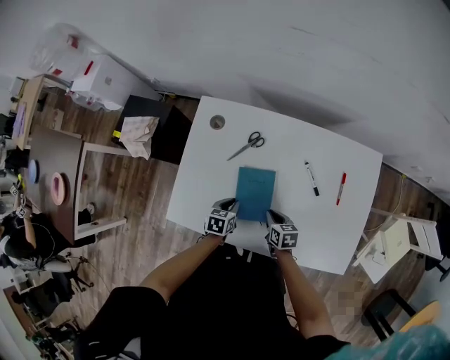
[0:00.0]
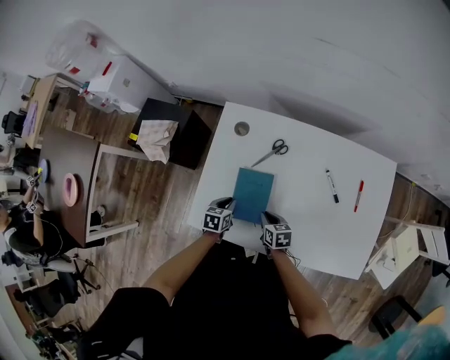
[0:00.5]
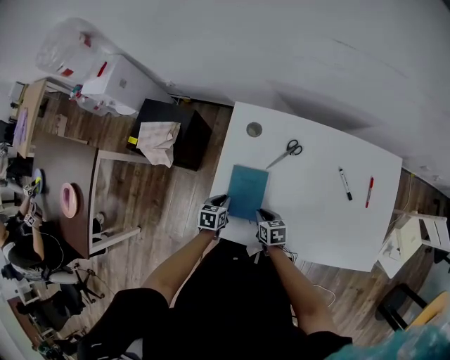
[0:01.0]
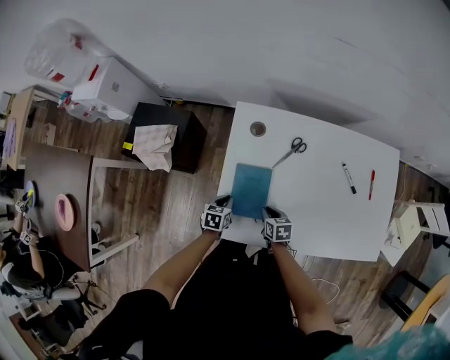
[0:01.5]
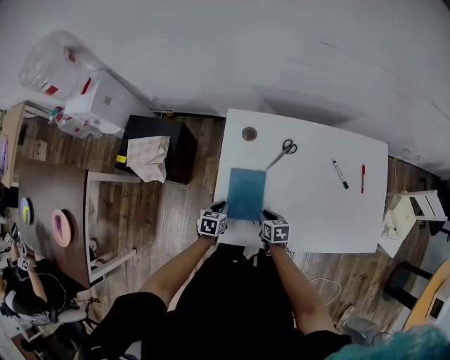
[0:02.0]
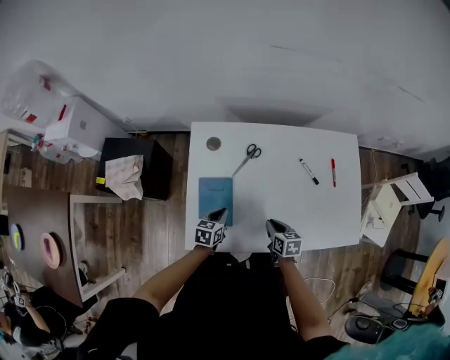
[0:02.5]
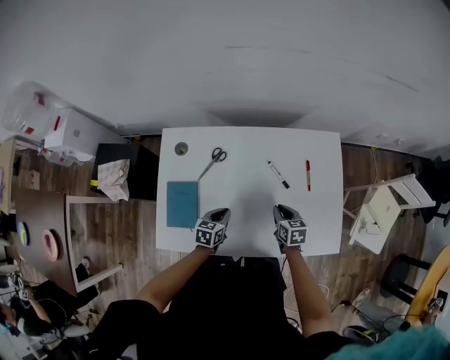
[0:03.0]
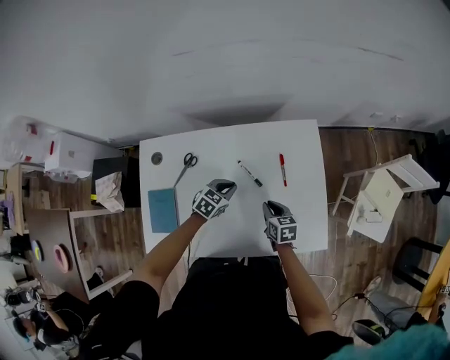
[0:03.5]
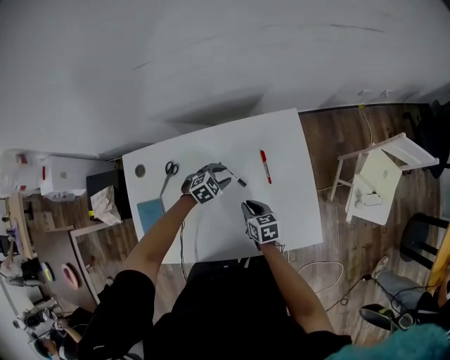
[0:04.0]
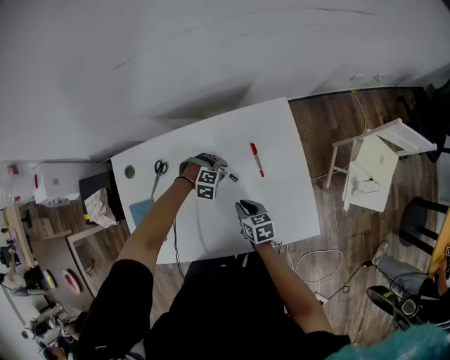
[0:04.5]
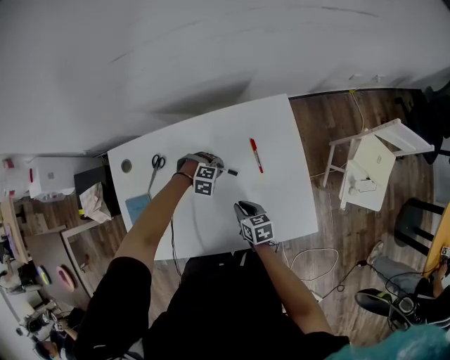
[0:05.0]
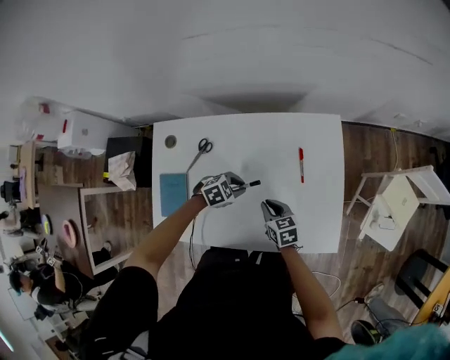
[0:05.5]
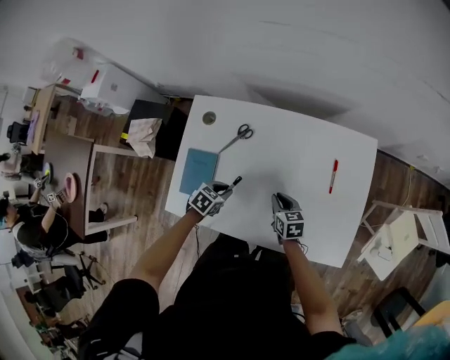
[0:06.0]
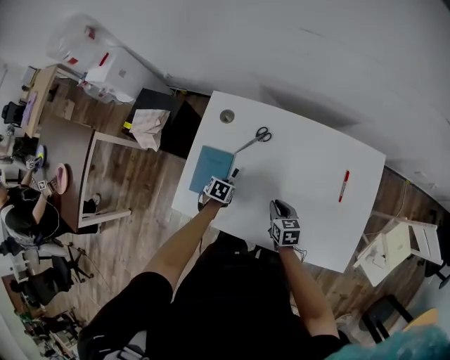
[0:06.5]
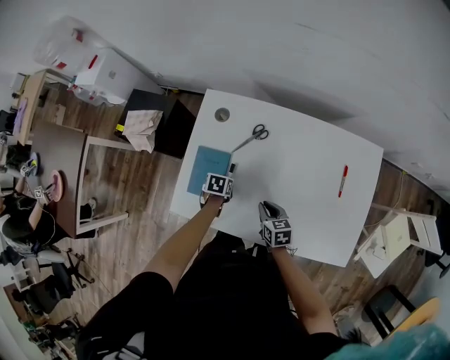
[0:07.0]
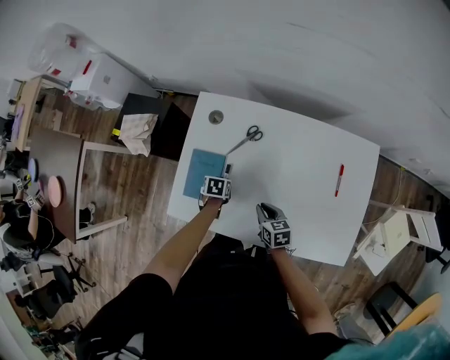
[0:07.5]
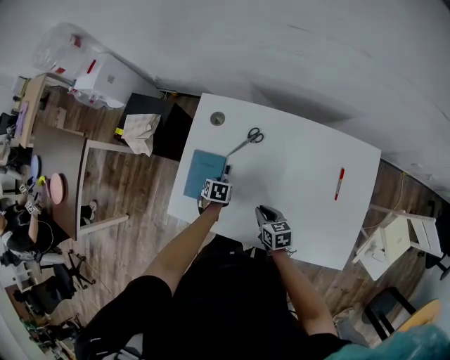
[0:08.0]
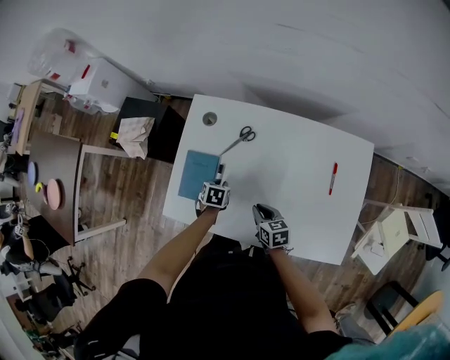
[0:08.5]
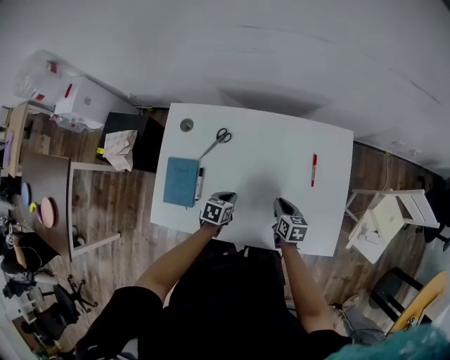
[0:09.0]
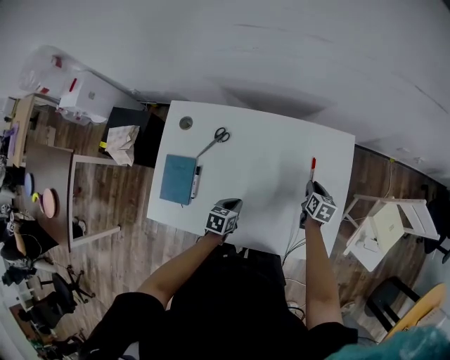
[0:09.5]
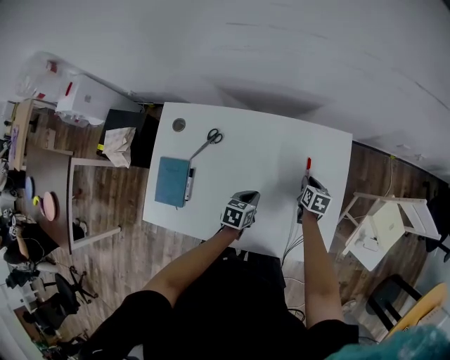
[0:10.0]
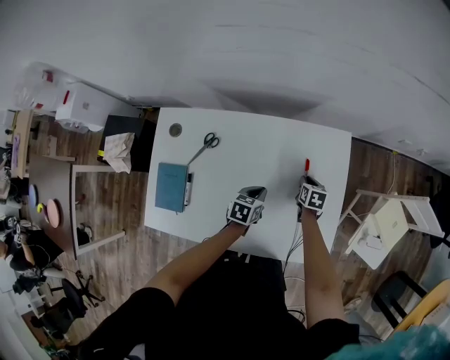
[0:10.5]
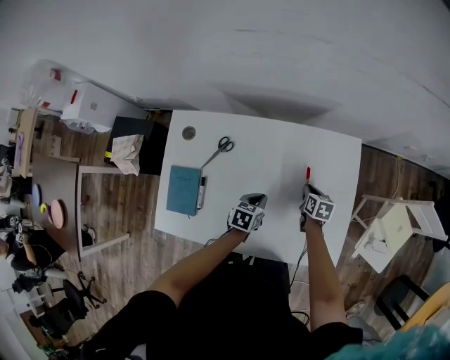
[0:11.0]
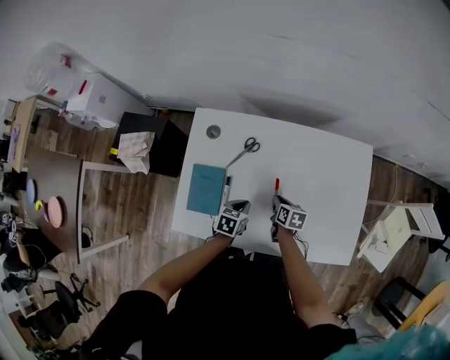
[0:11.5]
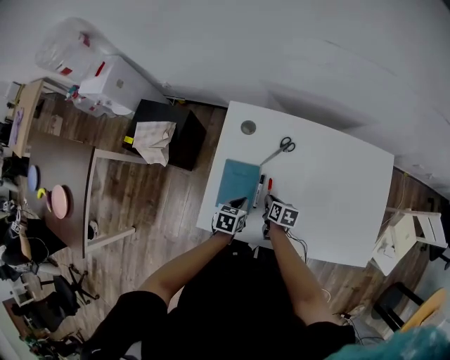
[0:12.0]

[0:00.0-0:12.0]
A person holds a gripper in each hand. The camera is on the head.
0:00.0 to 0:02.0: The grippers both shift to the left by approximately 25 cm.
0:02.0 to 0:04.0: The right gripper shifts approximately 35 cm to the right. The left gripper heads to the right and forward, covering approximately 50 cm, twists about 60 degrees clockwise, seen from behind, and opens its fingers.
0:04.0 to 0:06.0: The right gripper ends up roughly 10 cm from where it was, while the left gripper shifts by approximately 30 cm, and rotates around the line of its fingers by about 50 degrees, counterclockwise from behind.
0:06.0 to 0:08.0: The left gripper shifts by roughly 10 cm, and swivels some 40 degrees. The right gripper moves roughly 10 cm.
0:08.0 to 0:10.0: The left gripper shifts by about 30 cm, and rotates about 30 degrees, while the right gripper changes place by some 35 cm, and swivels about 40 degrees.
0:10.0 to 0:12.0: The right gripper heads to the left and backward, covering about 40 cm, while the left gripper heads to the left, covering roughly 30 cm.

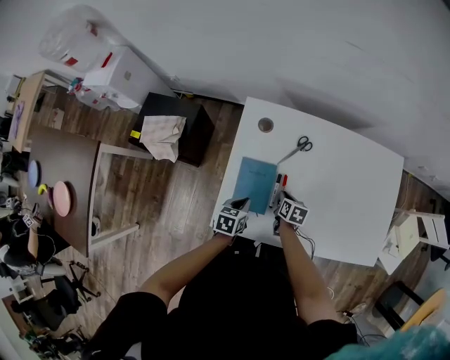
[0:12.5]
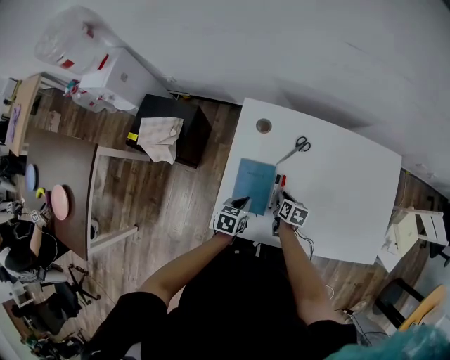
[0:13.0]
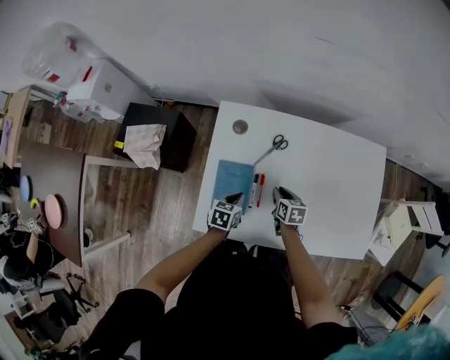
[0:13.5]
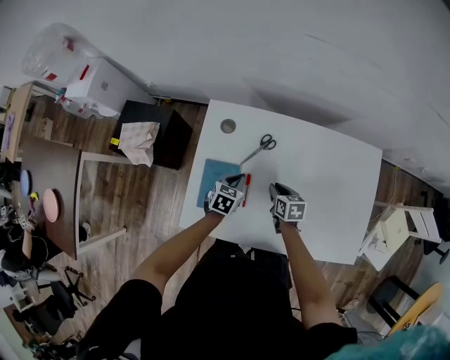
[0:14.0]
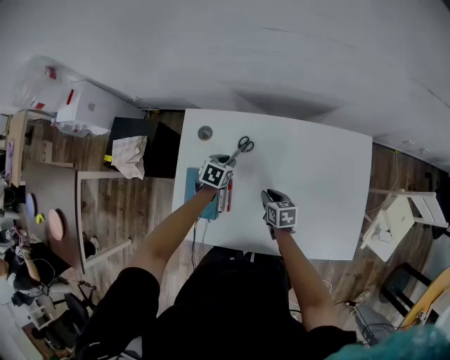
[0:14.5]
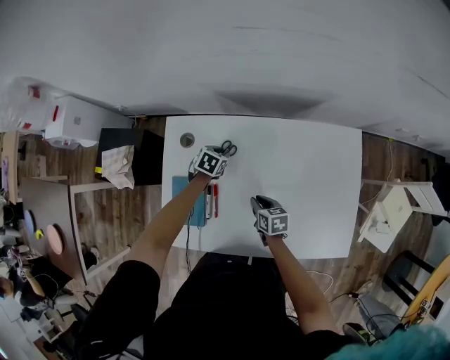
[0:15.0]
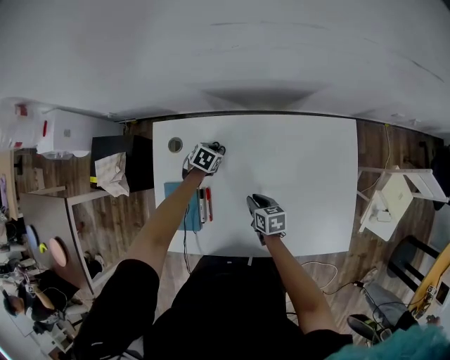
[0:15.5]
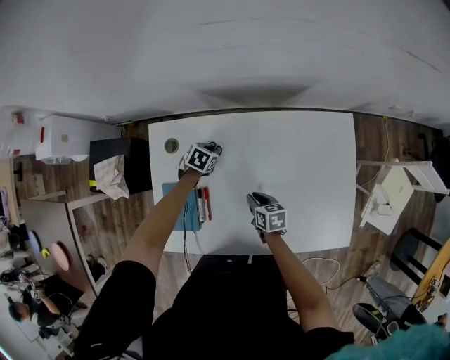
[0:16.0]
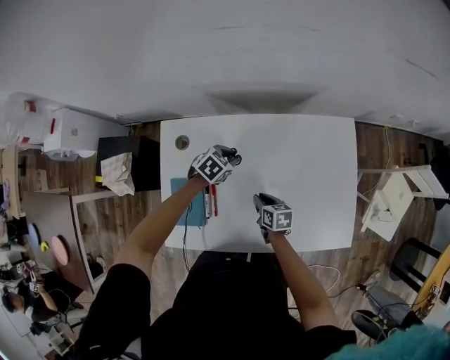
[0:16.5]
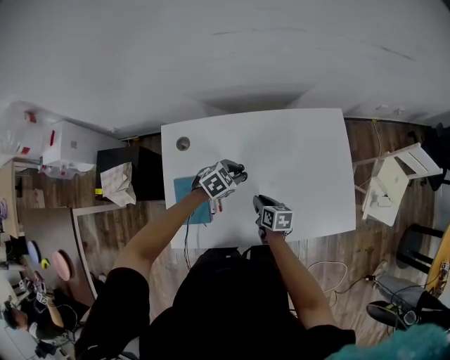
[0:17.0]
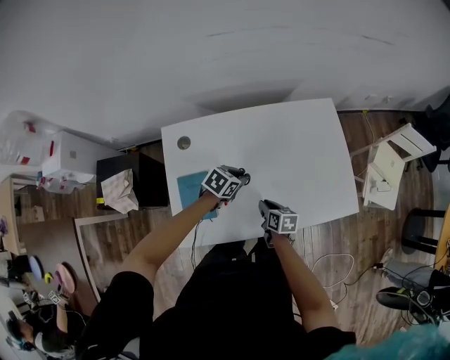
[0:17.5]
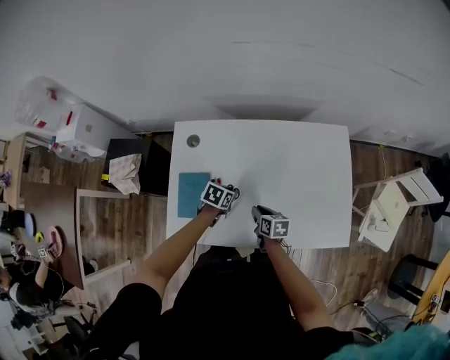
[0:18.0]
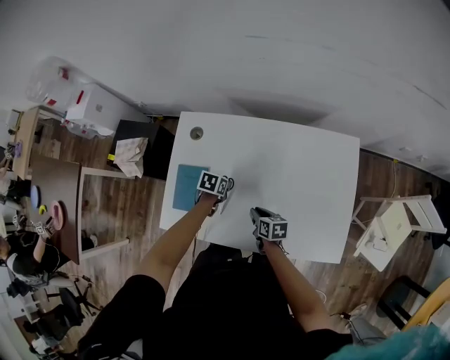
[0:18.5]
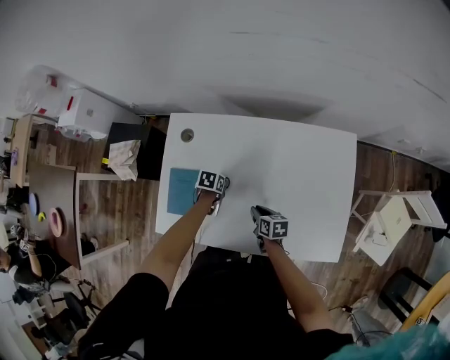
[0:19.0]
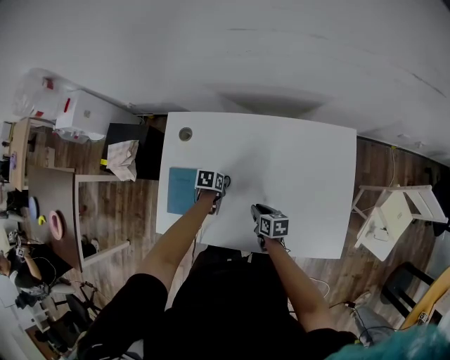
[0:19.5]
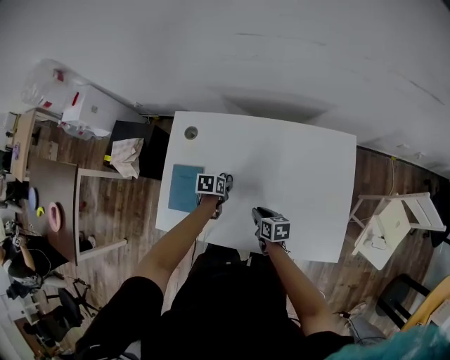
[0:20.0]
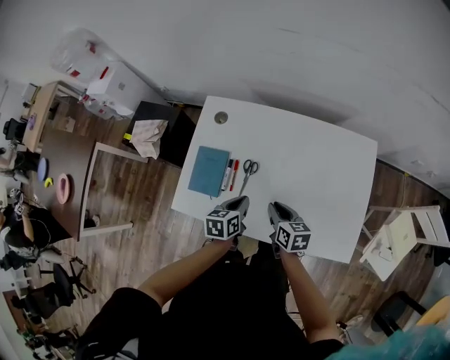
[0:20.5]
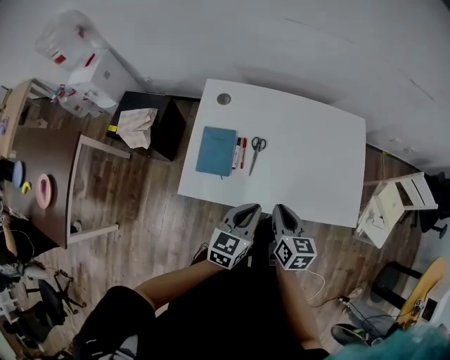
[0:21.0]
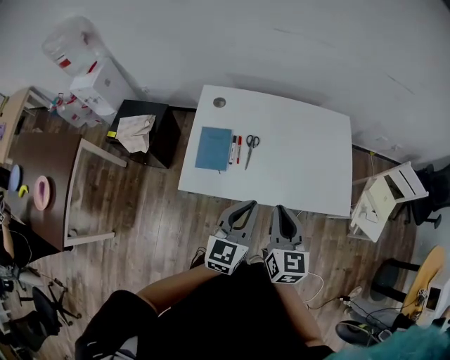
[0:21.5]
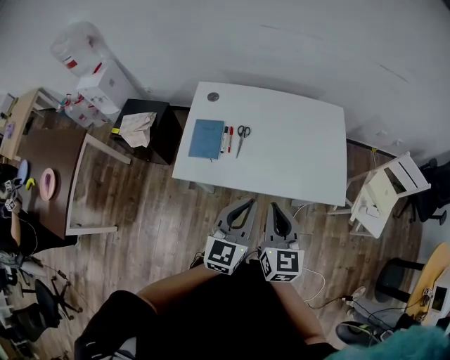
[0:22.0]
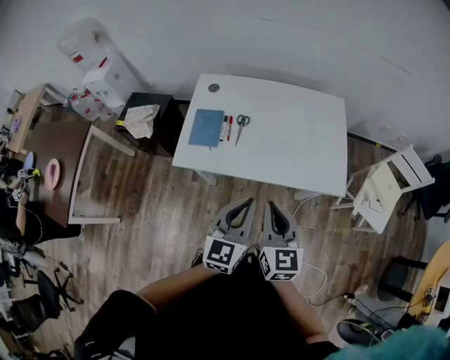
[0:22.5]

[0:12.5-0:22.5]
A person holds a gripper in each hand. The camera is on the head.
0:12.5 to 0:14.5: The left gripper travels forward and to the right by some 25 cm, and rotates roughly 20 degrees; the right gripper goes about 15 cm to the right.
0:14.5 to 0:16.5: The left gripper shifts roughly 10 cm to the right, and turns by approximately 30 degrees.
0:16.5 to 0:18.5: The left gripper ends up some 15 cm from where it was, and rolls counterclockwise, seen from behind, by about 40 degrees.
0:18.5 to 0:20.5: The right gripper travels upward by some 10 cm; the left gripper moves backward and upward, approximately 15 cm, and changes its angle by approximately 30 degrees.
0:20.5 to 0:22.5: Both grippers move backward and upward, some 35 cm. The left gripper angles its fingers upward, by approximately 30 degrees; the right gripper swivels about 40 degrees.

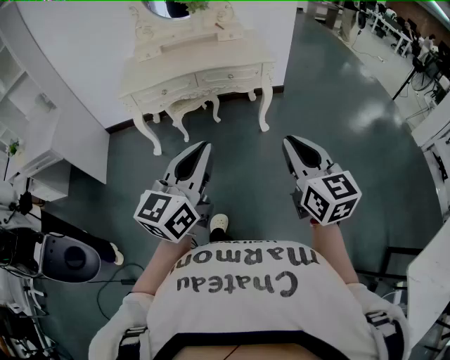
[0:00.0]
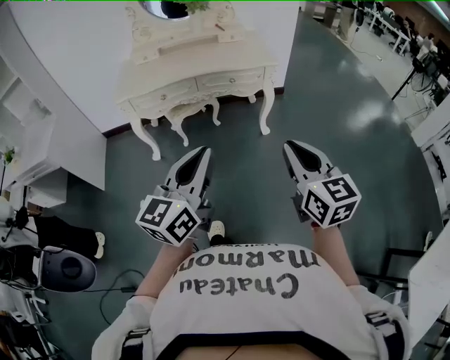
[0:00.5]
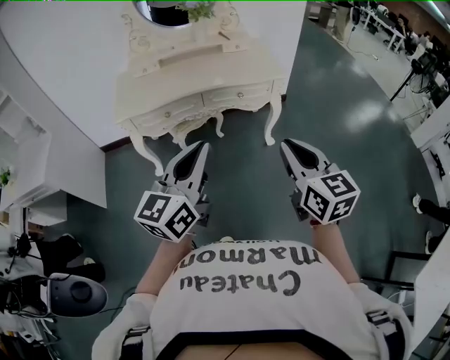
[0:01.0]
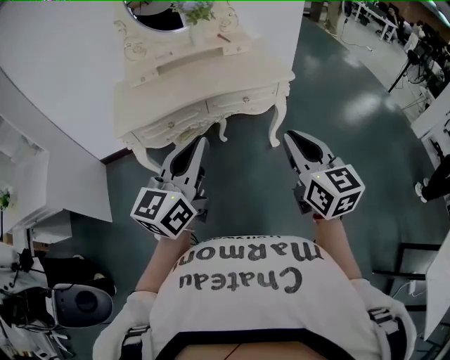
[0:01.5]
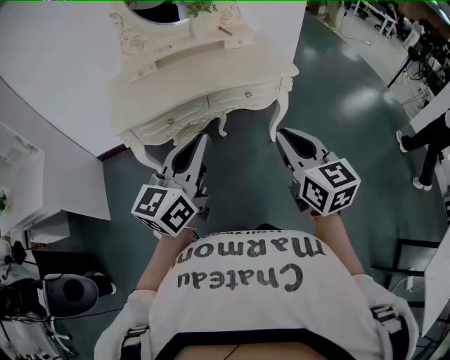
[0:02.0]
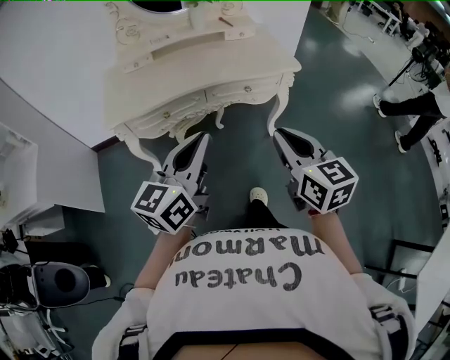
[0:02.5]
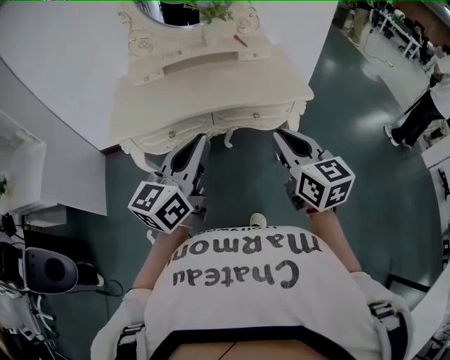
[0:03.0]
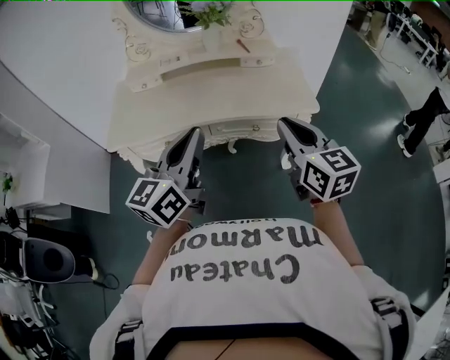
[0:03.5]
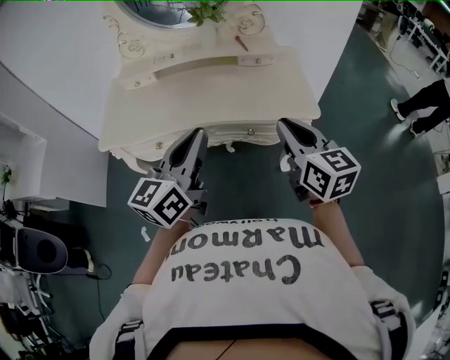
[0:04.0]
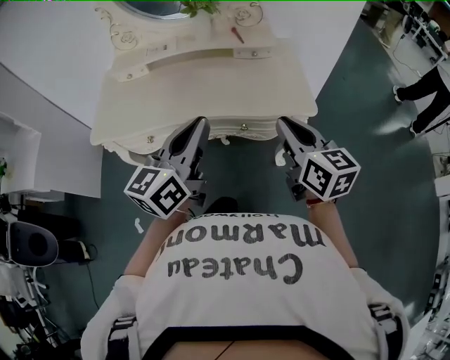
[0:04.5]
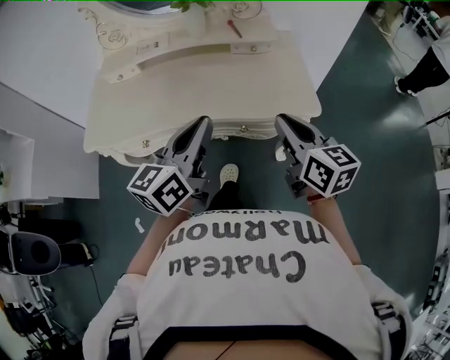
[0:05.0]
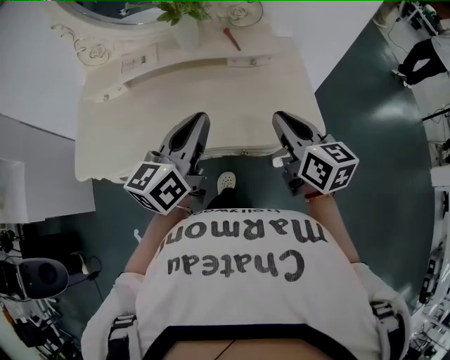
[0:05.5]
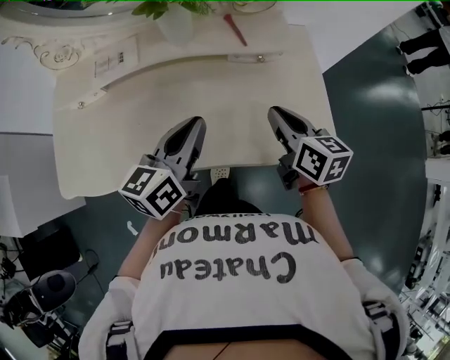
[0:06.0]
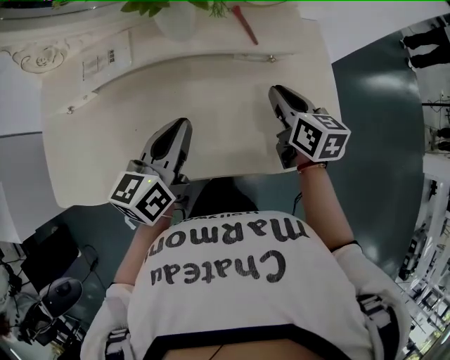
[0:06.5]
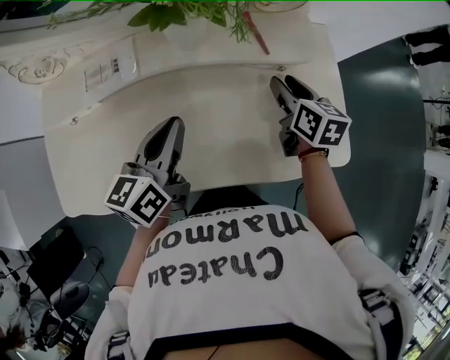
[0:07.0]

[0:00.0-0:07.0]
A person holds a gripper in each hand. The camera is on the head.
0:00.0 to 0:02.0: Both grippers move forward and to the left, approximately 30 cm.
0:02.0 to 0:03.5: Both grippers move forward, some 20 cm.
0:03.5 to 0:05.0: The left gripper is displaced forward, to the right and downward by about 15 cm. The right gripper goes some 15 cm forward, downward and to the right.
0:05.0 to 0:07.0: The right gripper shifts about 40 cm forward and downward, swivels about 20 degrees, and opens its fingers; the left gripper moves forward, downward and to the left, roughly 35 cm.
